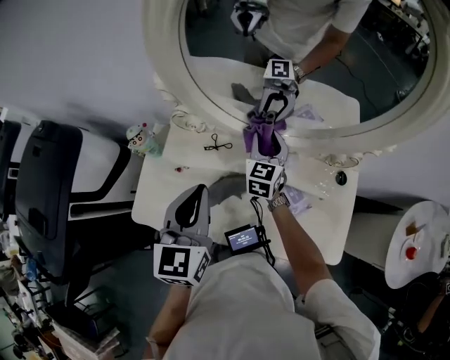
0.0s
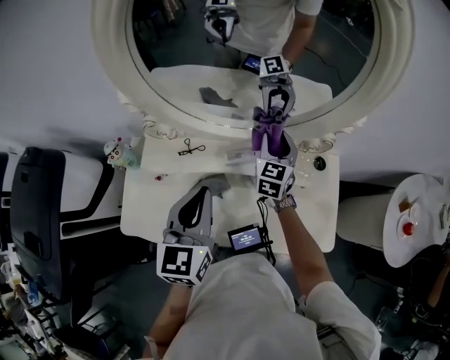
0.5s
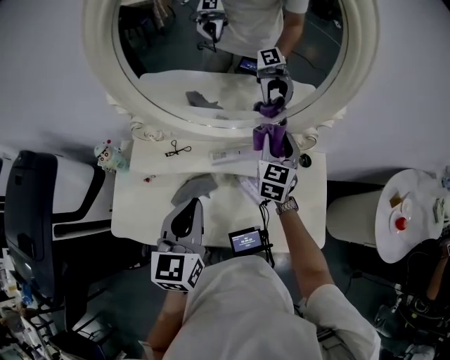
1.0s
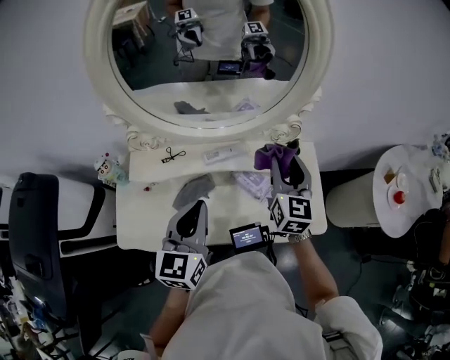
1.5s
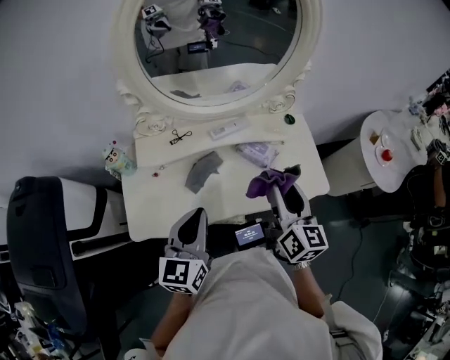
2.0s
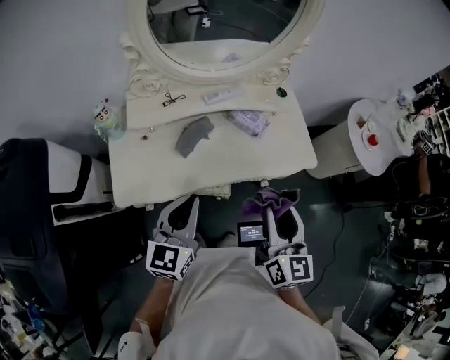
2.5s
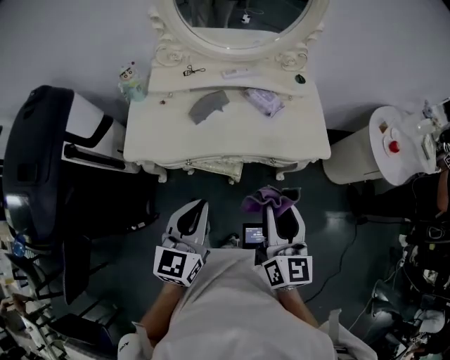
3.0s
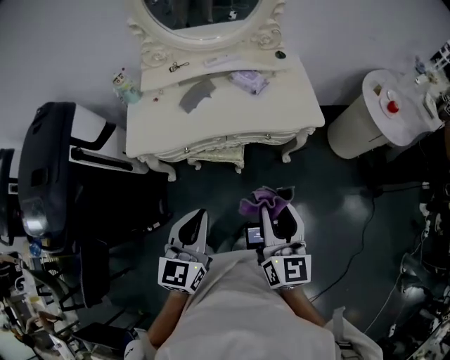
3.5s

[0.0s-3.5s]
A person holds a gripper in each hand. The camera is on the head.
0.0s to 2.0s: The right gripper shifts approximately 35 cm backward and to the right, and rotates about 40 degrees. The left gripper goes some 15 cm backward, and changes its angle by some 30 degrees.
2.0s to 3.5s: The grippers both shift backward by about 35 cm.

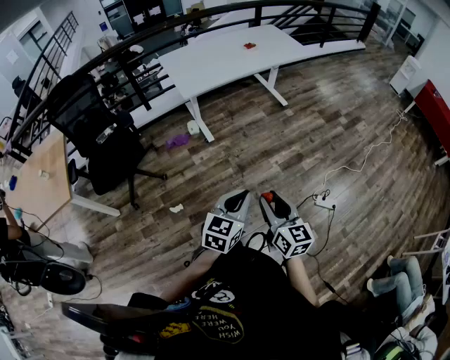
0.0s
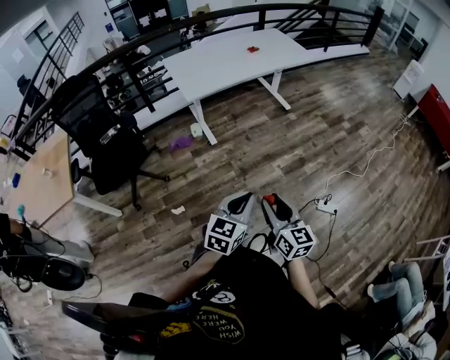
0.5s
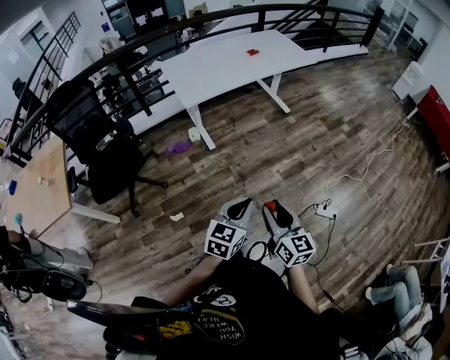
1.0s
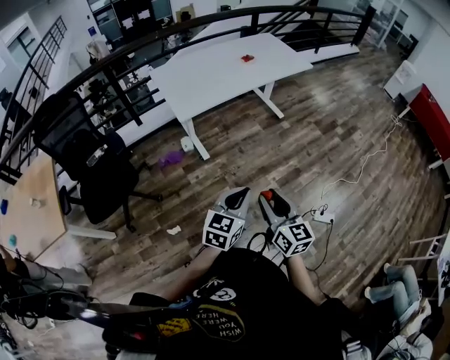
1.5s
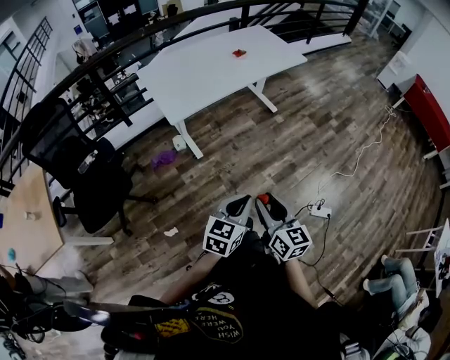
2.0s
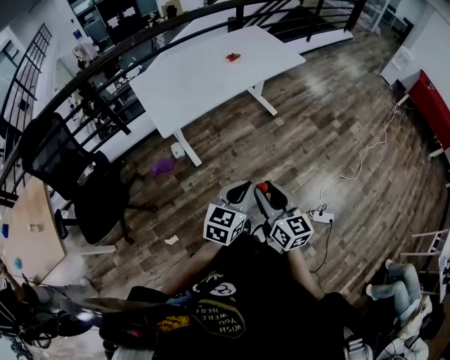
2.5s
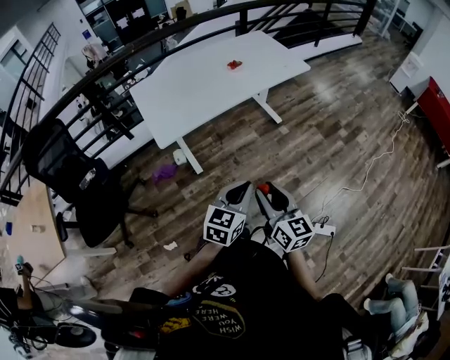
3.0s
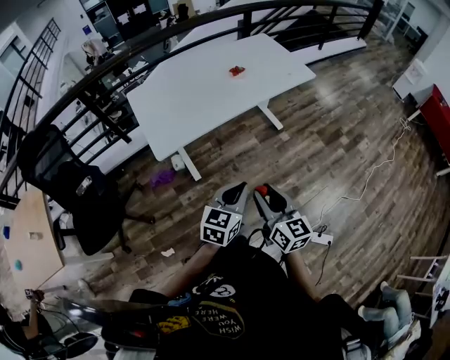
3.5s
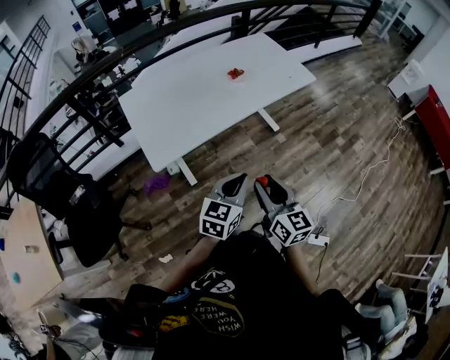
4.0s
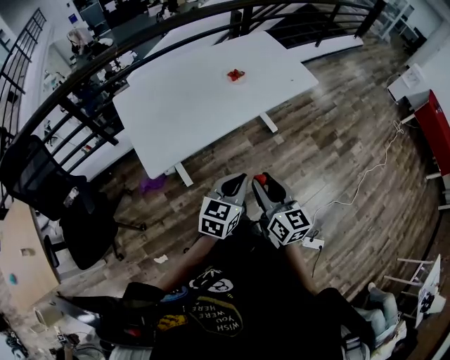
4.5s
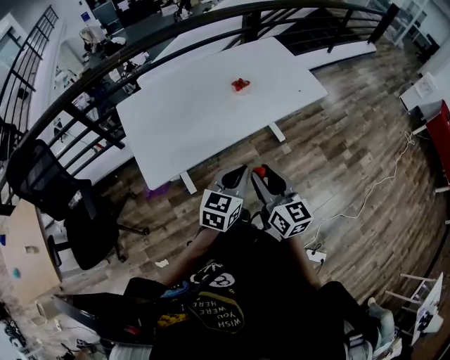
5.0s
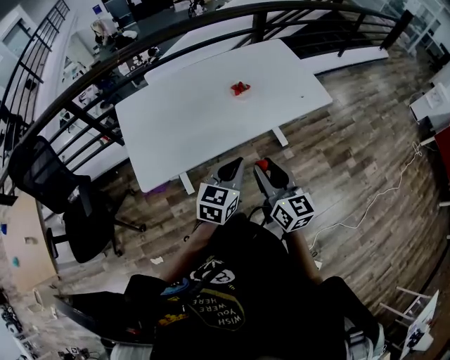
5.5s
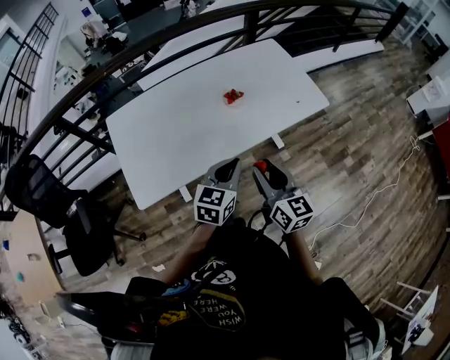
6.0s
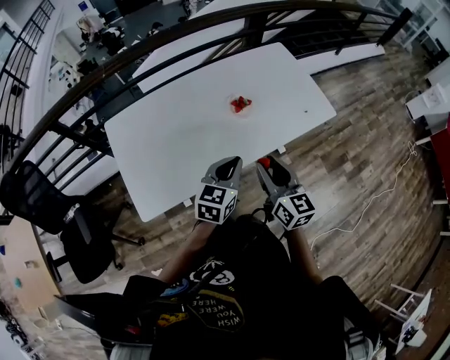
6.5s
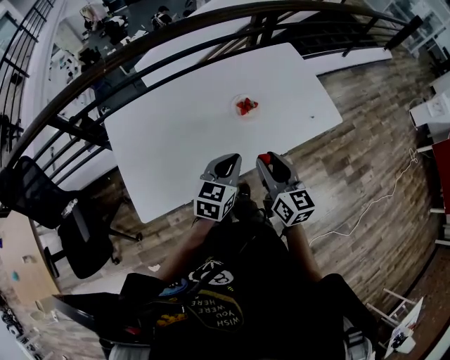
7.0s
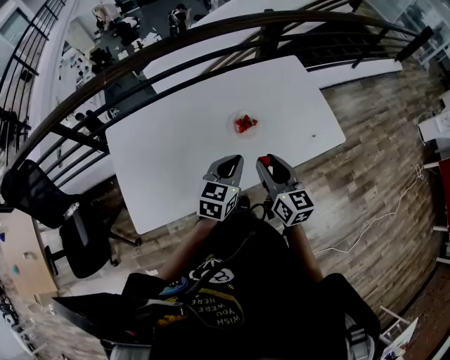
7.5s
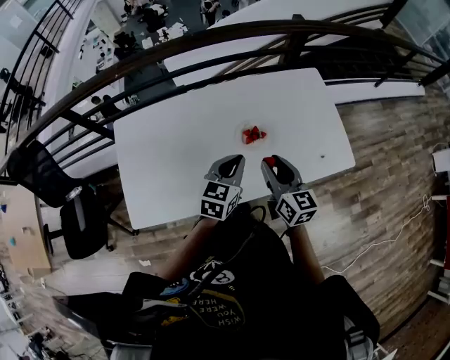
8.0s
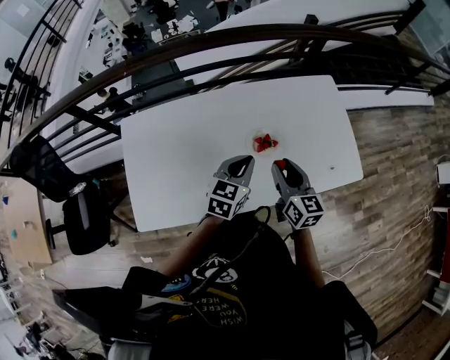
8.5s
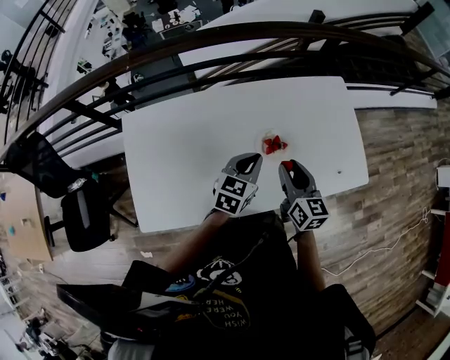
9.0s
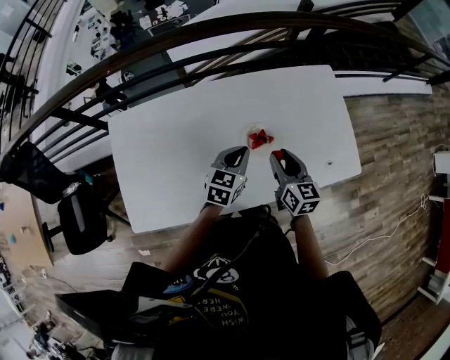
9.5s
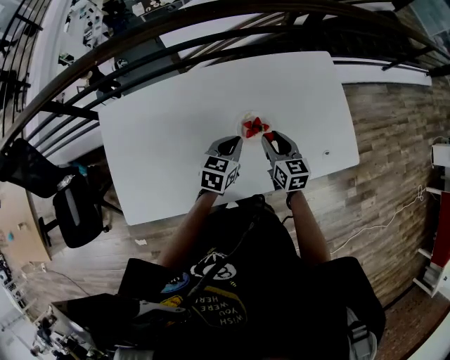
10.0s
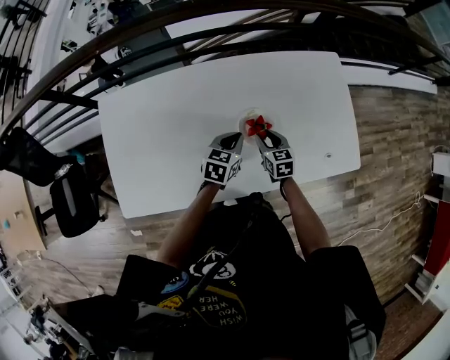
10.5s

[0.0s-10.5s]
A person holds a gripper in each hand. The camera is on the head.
0.0s to 2.0s: The grippers both shift forward by approximately 20 cm.
2.0s to 4.0s: The two grippers go some 35 cm forward.
4.0s to 6.5s: Both grippers move forward, about 40 cm.
6.5s to 8.5s: The two grippers go some 25 cm forward.
8.5s to 10.5s: The right gripper heads downward, covering about 25 cm, and turns by about 30 degrees. The left gripper is displaced downward and forward by roughly 15 cm.

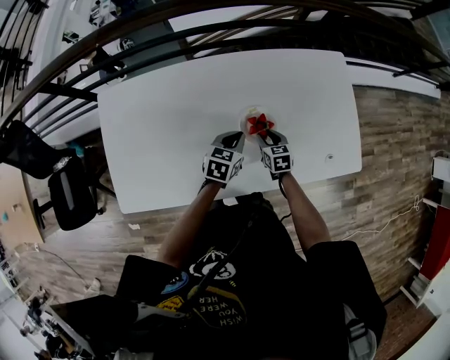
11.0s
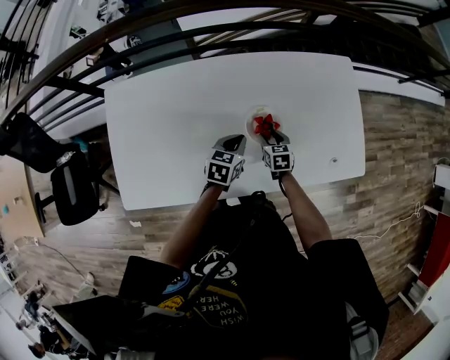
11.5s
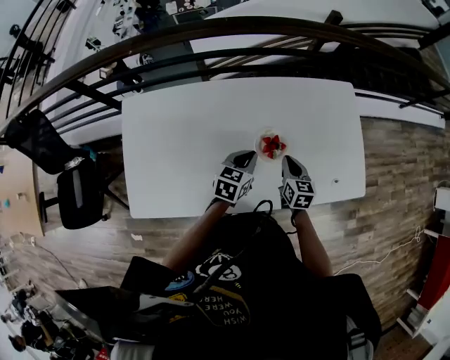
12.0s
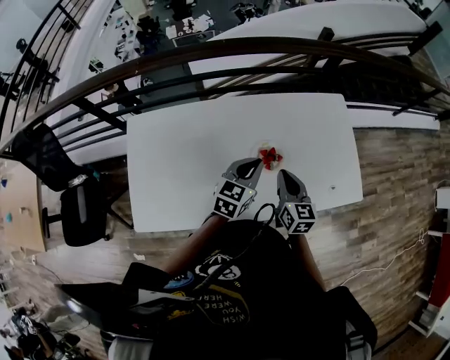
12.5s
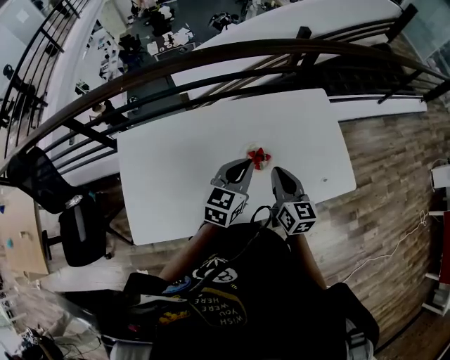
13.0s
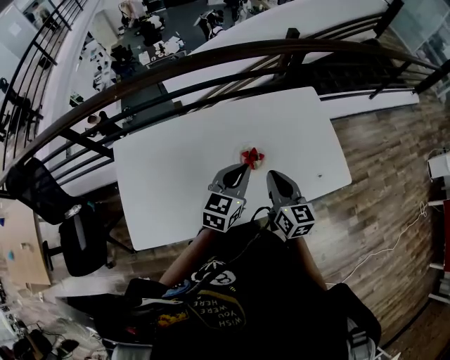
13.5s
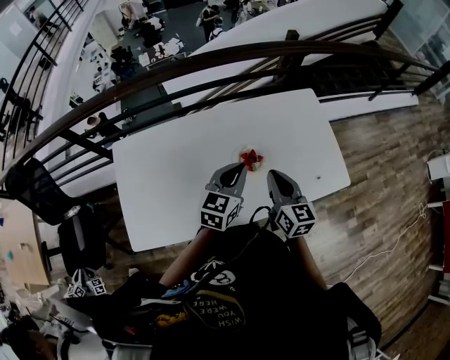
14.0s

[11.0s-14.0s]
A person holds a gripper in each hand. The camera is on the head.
11.0s to 12.5s: The left gripper heads upward, covering approximately 15 cm. The right gripper goes about 25 cm upward, turns by some 30 degrees, and closes its fingers.
12.5s to 14.0s: The grippers both shift upward by roughly 5 cm.

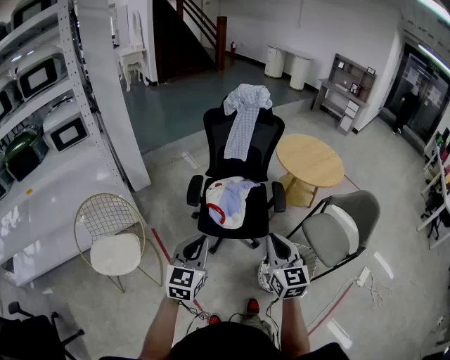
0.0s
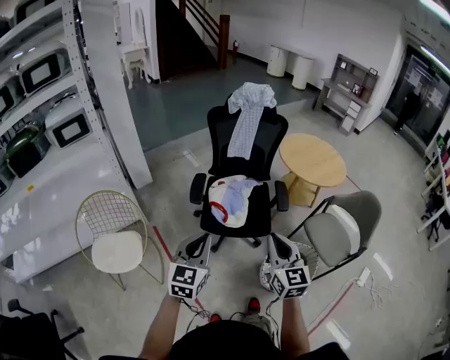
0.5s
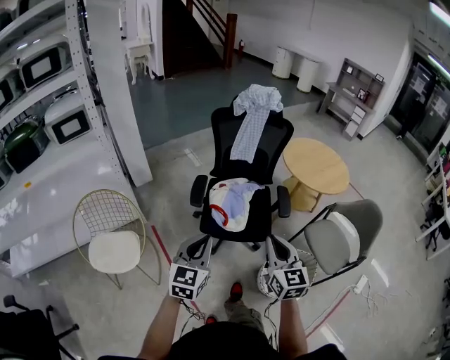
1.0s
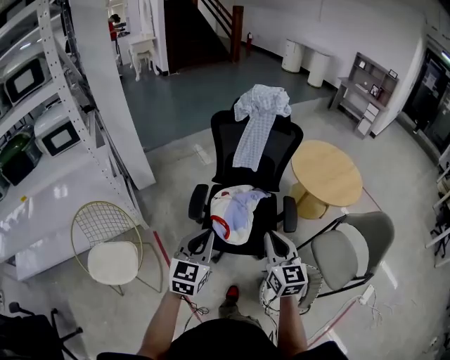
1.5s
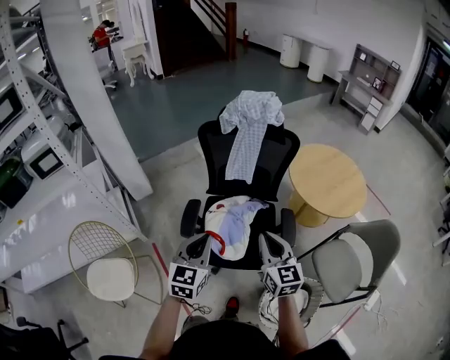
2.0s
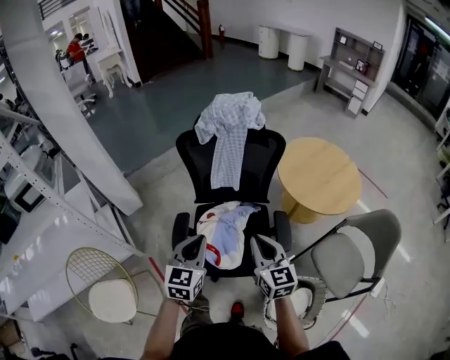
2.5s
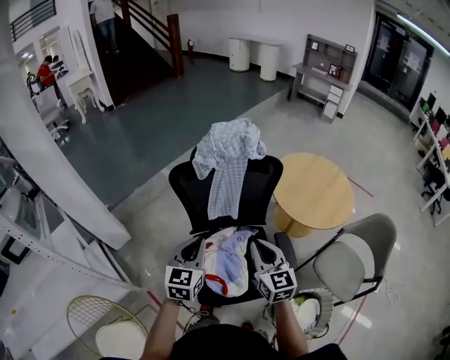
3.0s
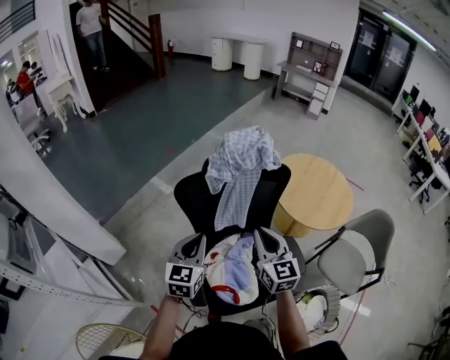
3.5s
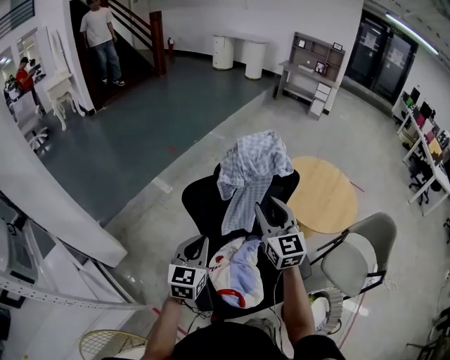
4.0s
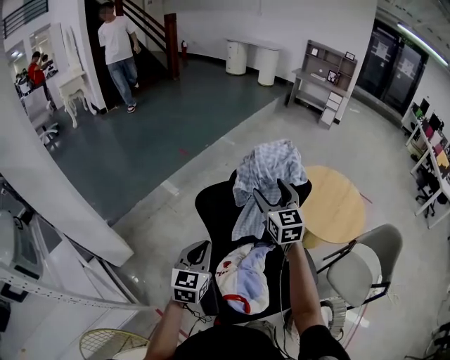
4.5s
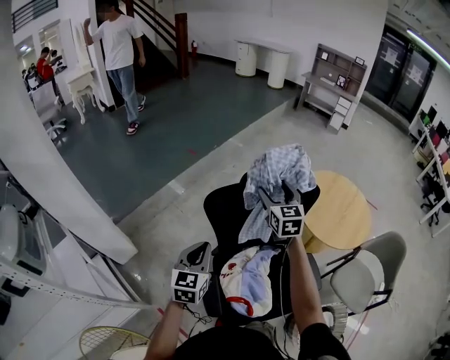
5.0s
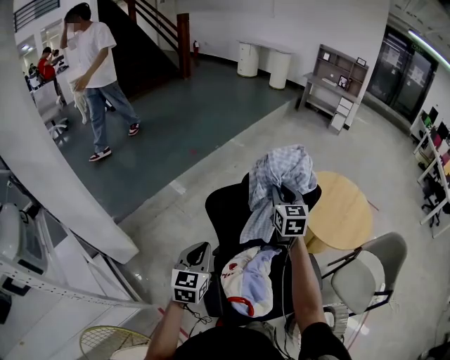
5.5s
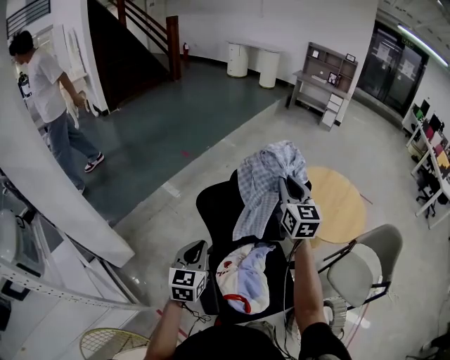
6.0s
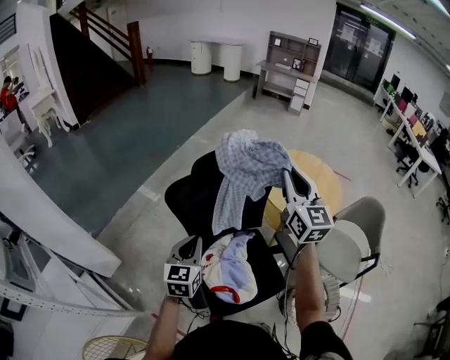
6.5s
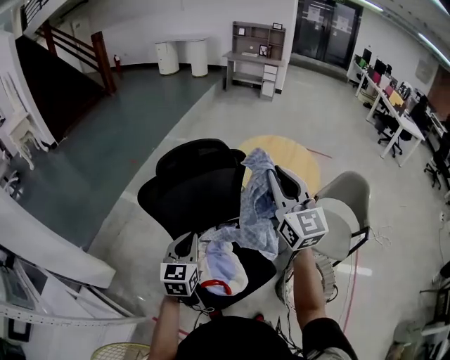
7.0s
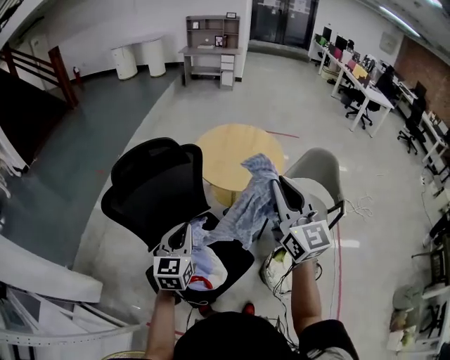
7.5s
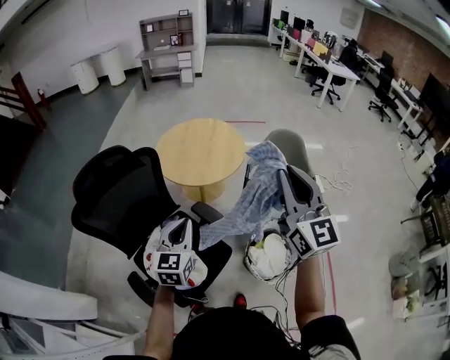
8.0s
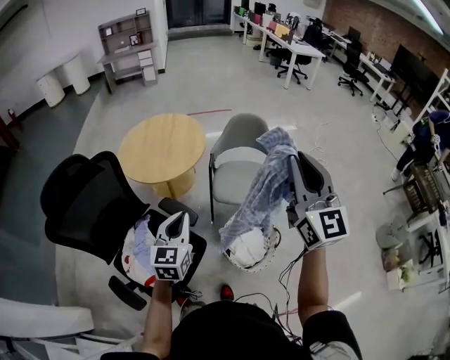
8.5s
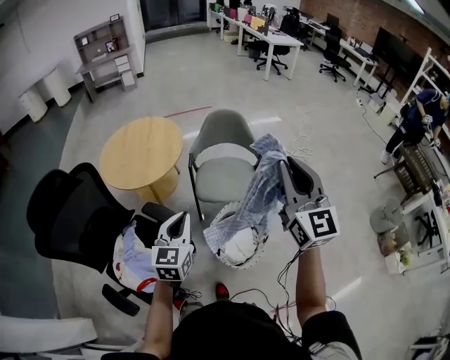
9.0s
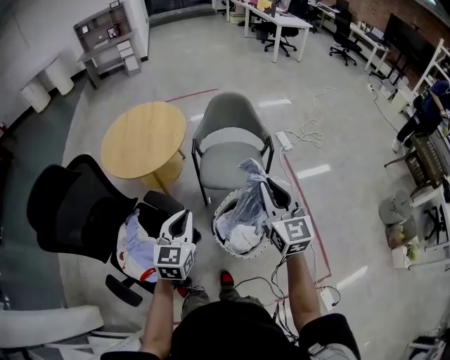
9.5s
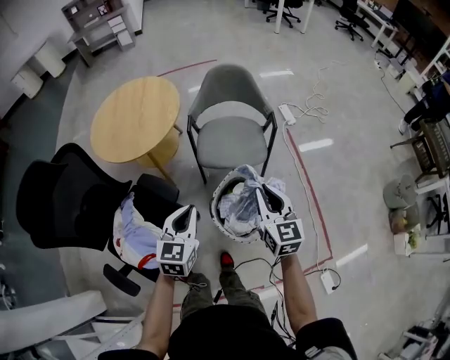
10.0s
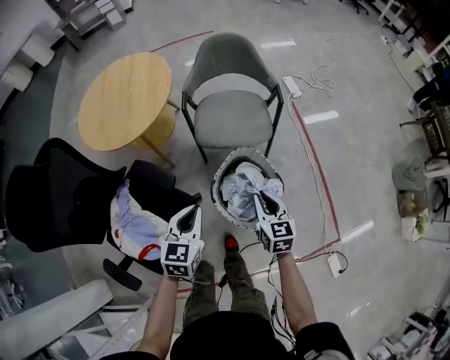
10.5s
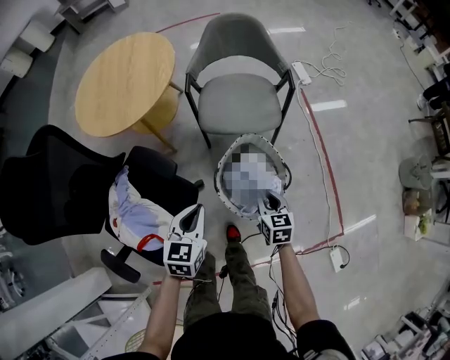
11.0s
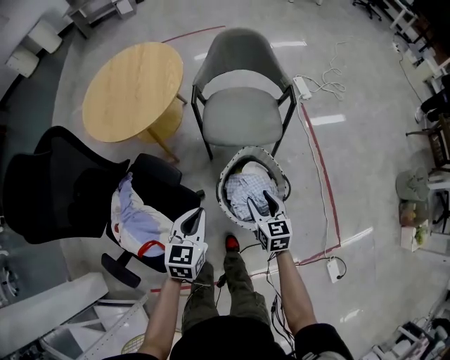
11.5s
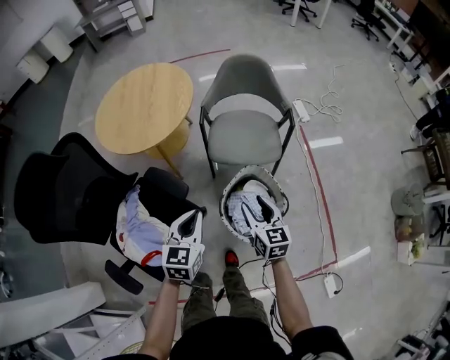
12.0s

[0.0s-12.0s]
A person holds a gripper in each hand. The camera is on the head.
0.0s to 2.0s: The two grippers go some 30 cm forward.
2.0s to 4.0s: The right gripper heads forward, covering some 35 cm, and changes its angle by approximately 20 degrees; the left gripper travels forward and to the left by approximately 35 cm.
4.0s to 6.0s: The right gripper moves forward, about 10 cm, and opens, then closes again. The left gripper moves to the left, some 5 cm.
6.0s to 8.0s: The left gripper shifts by approximately 40 cm, and swivels approximately 40 degrees, while the right gripper moves about 60 cm, and rotates roughly 30 degrees.
8.0s to 10.0s: The left gripper shifts roughly 30 cm to the right and downward, and swivels approximately 20 degrees. The right gripper is displaced downward and to the right by about 40 cm, and swivels some 40 degrees.
10.0s to 12.0s: The right gripper goes about 15 cm downward and to the left, and opens up; the left gripper travels downward by about 5 cm.
